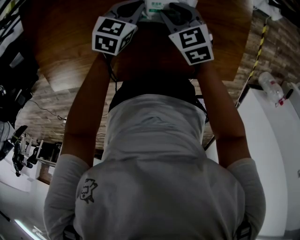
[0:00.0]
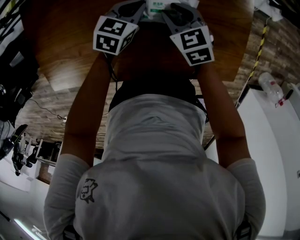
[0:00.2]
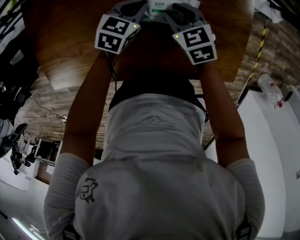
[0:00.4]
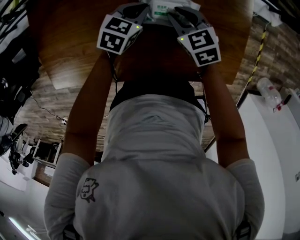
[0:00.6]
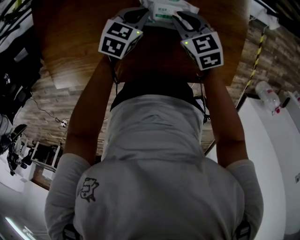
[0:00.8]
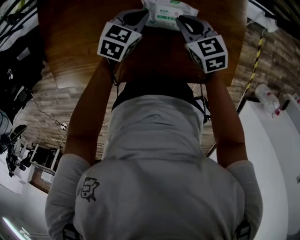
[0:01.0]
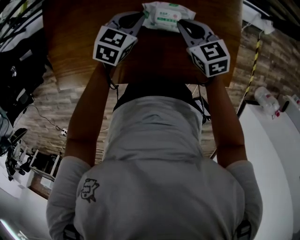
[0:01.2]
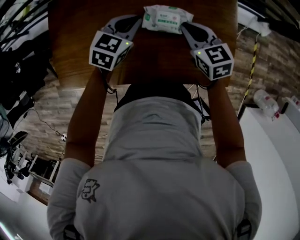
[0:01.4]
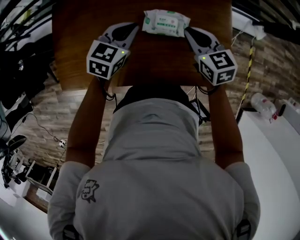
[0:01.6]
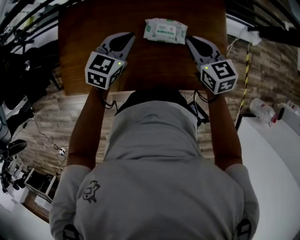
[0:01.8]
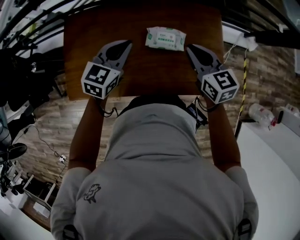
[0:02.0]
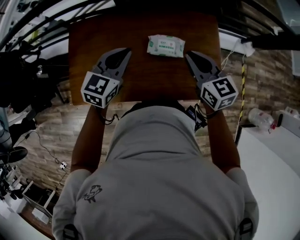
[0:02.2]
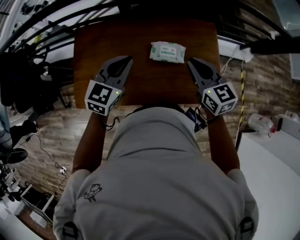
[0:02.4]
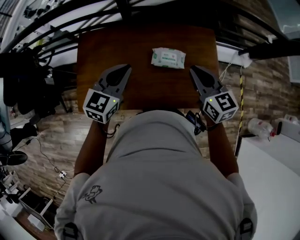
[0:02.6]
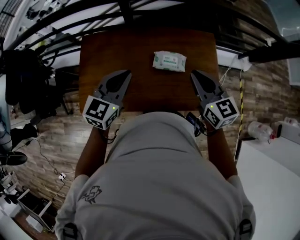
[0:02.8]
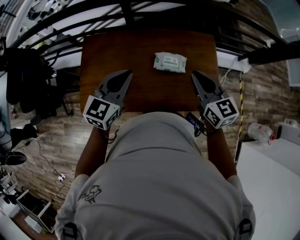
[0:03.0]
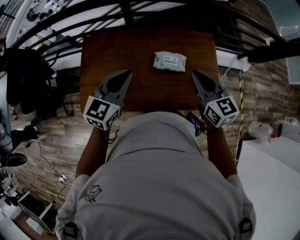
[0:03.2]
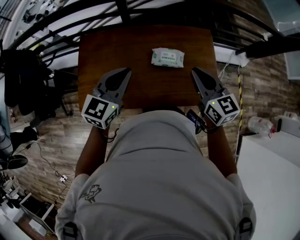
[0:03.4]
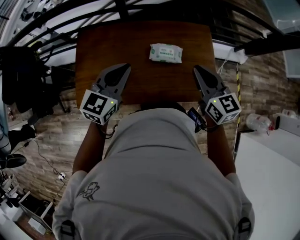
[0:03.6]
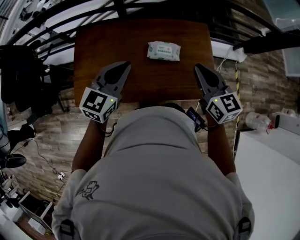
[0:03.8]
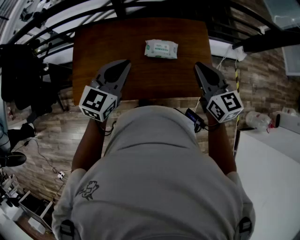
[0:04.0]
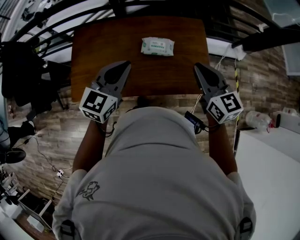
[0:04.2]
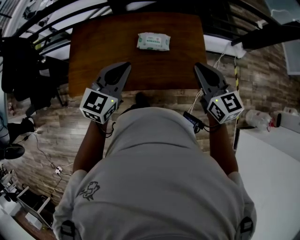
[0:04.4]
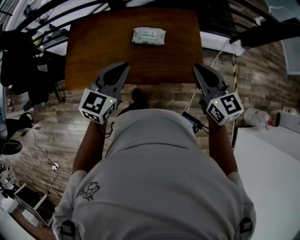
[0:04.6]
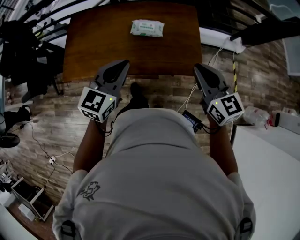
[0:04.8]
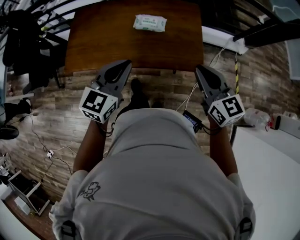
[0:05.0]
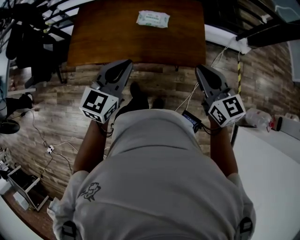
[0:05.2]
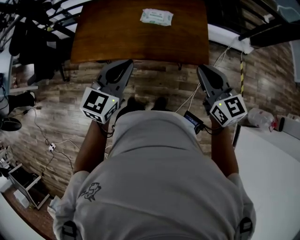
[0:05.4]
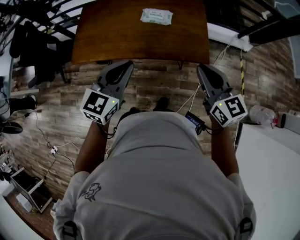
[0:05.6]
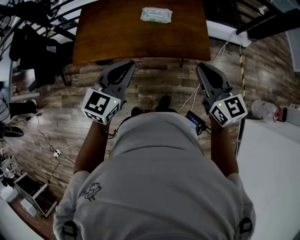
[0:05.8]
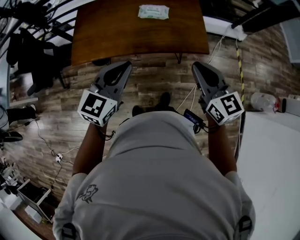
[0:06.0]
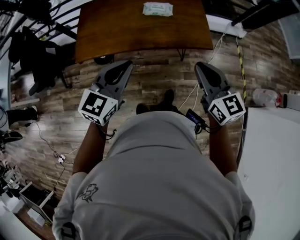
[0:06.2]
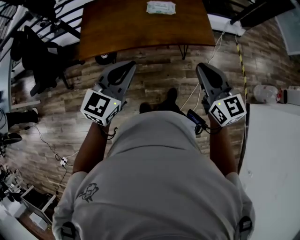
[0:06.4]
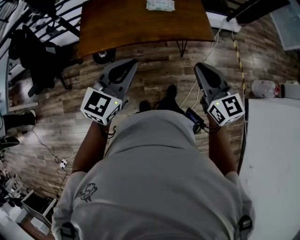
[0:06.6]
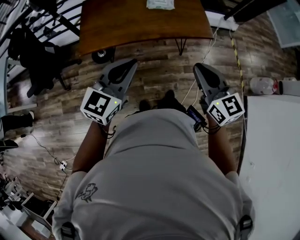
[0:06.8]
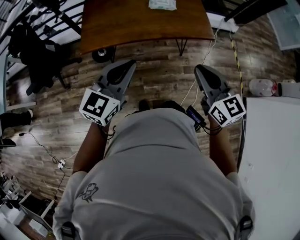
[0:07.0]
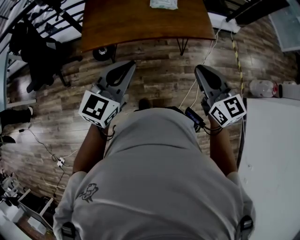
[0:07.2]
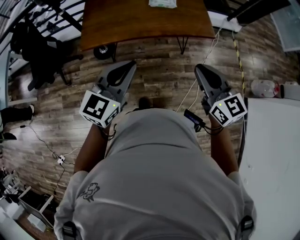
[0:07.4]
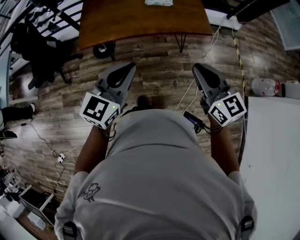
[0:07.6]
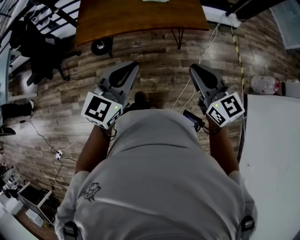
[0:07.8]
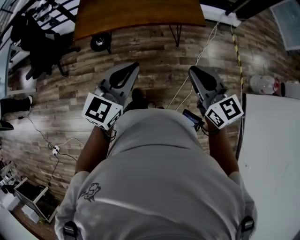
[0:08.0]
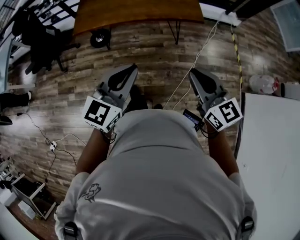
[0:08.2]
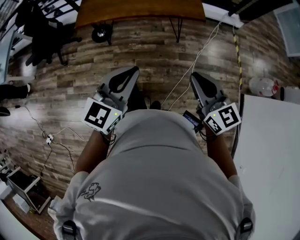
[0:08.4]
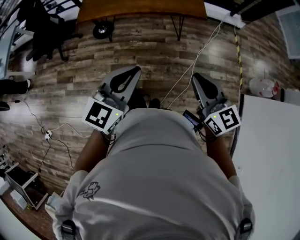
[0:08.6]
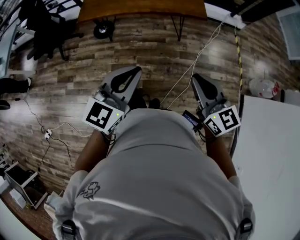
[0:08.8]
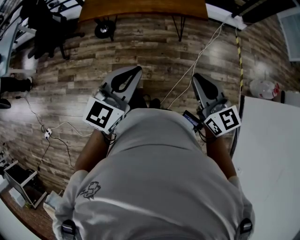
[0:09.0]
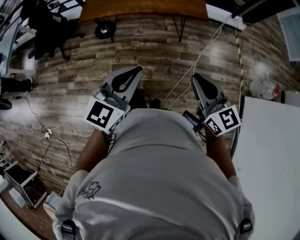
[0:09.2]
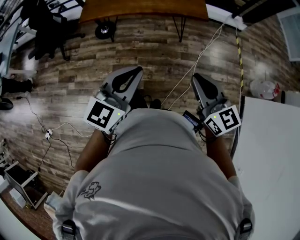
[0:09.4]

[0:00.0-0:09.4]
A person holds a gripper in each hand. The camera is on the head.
0.0 to 1.6 s: Both grippers move upward, some 15 cm. The right gripper closes its fingers.
1.6 to 3.2 s: The grippers both shift upward and backward by about 25 cm.
3.2 to 4.8 s: The two grippers go some 25 cm backward and to the right.
4.8 to 6.2 s: Both grippers travel together backward and to the left, approximately 20 cm.
6.2 to 7.8 s: The grippers both shift backward by roughly 15 cm.
7.8 to 9.4 s: The grippers both shift backward by some 15 cm.

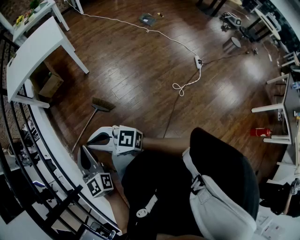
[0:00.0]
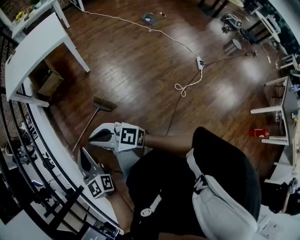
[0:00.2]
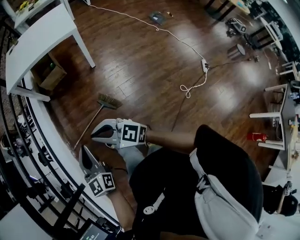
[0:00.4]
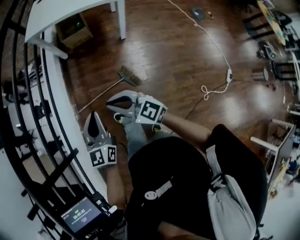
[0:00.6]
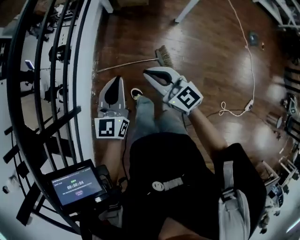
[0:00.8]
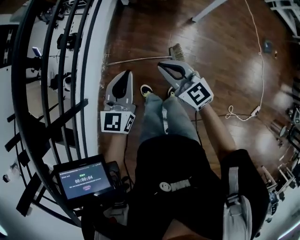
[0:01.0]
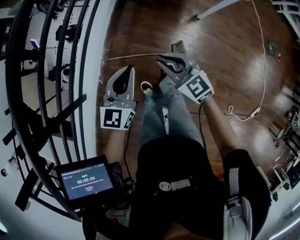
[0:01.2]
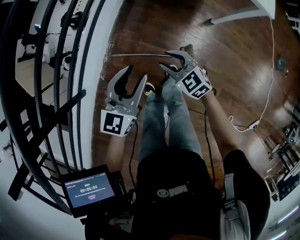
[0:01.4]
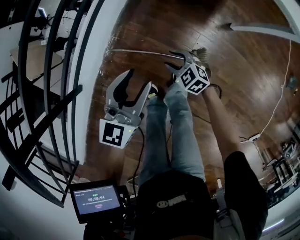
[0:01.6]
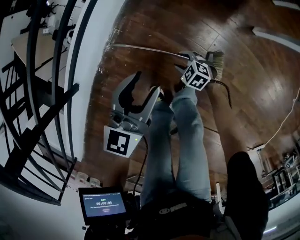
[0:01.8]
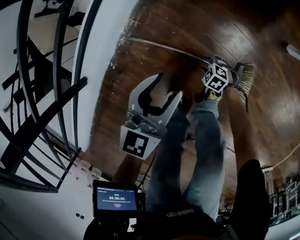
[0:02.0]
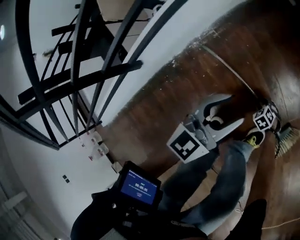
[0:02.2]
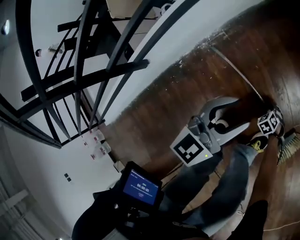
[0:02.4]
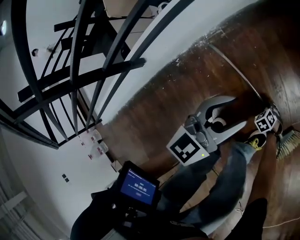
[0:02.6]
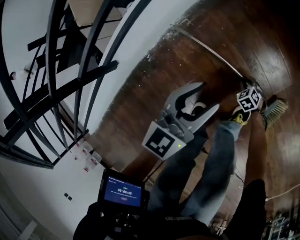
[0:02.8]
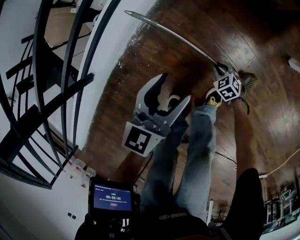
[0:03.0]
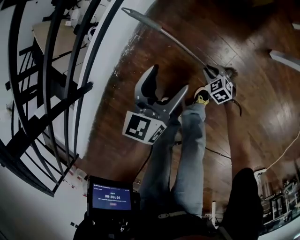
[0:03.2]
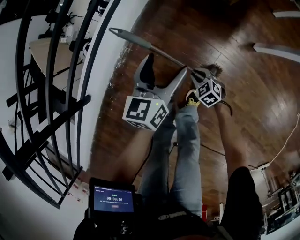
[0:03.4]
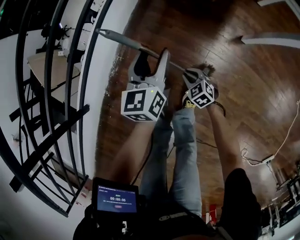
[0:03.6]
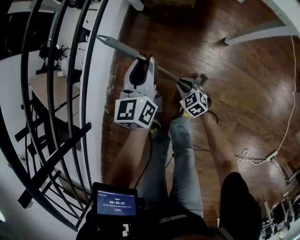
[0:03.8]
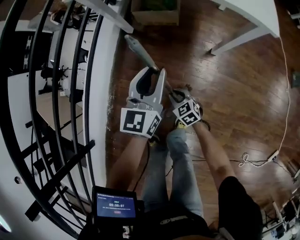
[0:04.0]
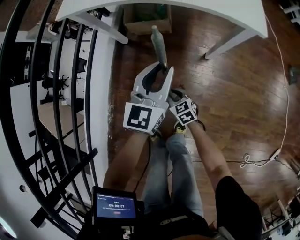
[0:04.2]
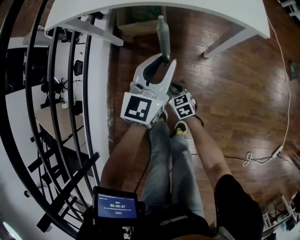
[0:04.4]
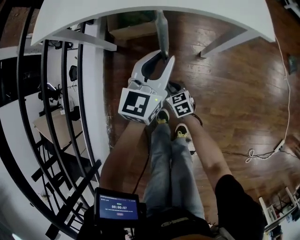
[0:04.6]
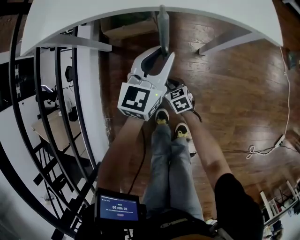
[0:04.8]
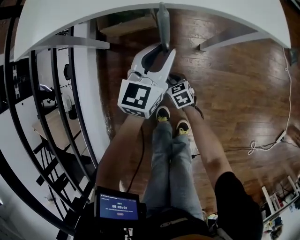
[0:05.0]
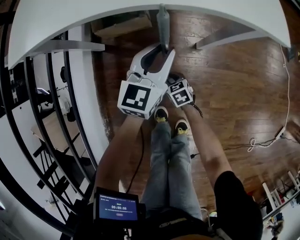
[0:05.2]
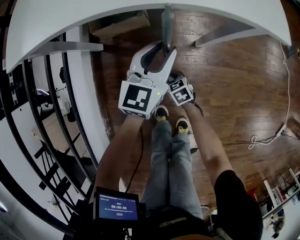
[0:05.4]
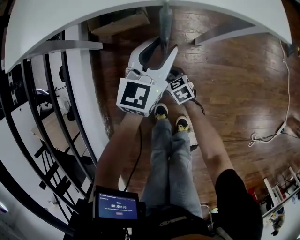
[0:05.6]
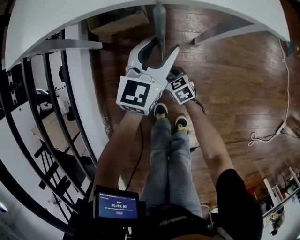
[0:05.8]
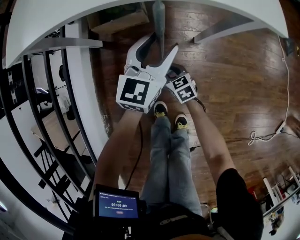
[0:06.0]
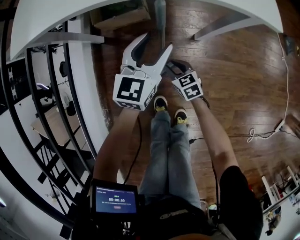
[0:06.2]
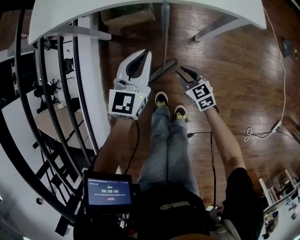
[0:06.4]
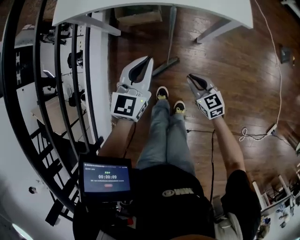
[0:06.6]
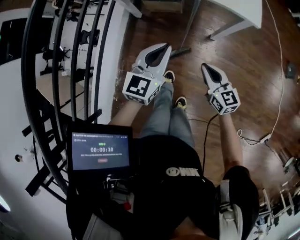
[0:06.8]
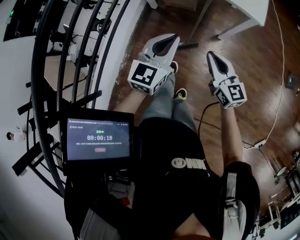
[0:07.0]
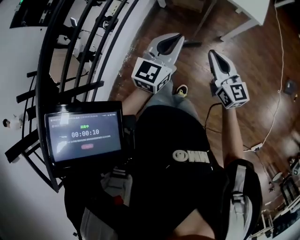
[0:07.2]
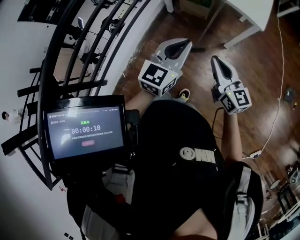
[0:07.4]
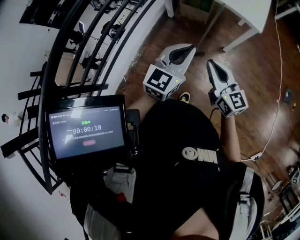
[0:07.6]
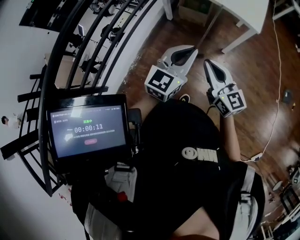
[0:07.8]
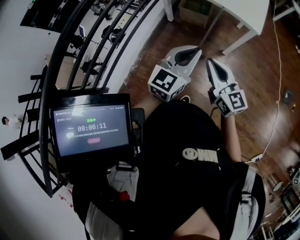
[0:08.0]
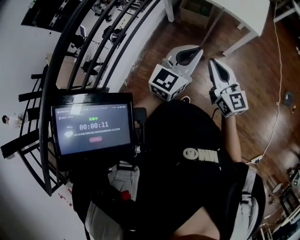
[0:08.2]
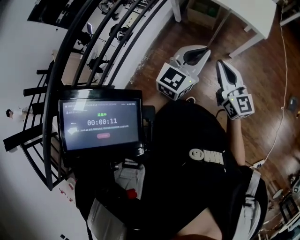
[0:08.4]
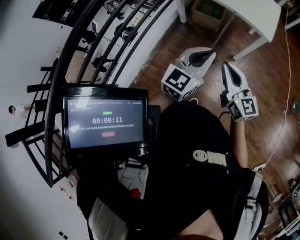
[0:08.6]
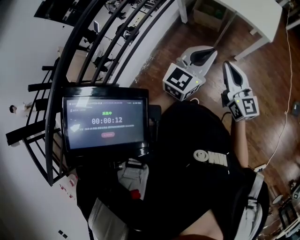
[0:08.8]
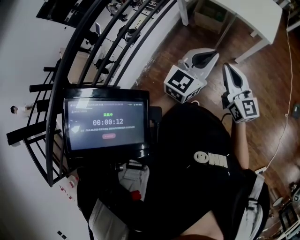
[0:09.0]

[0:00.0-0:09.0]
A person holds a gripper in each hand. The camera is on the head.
0.0 to 1.6 s: The pair of grippers is taken forward, about 40 cm. The left gripper travels downward by roughly 20 cm, and opens up; the right gripper shifts some 40 cm downward, angles its fingers downward, by some 50 degrees, and opens up.
1.6 to 3.0 s: Both grippers move downward, roughly 30 cm. The right gripper closes up.
3.0 to 4.4 s: The right gripper heads upward, covering approximately 25 cm, and rotates around the line of its fingers by roughly 40 degrees, clockwise from behind; the left gripper changes place by some 50 cm, rotates approximately 40 degrees, and closes up.
4.4 to 6.0 s: The right gripper is displaced forward and downward by some 10 cm, while the left gripper travels downward and forward by roughly 10 cm, and opens up.
6.0 to 7.6 s: The left gripper moves backward and upward, some 60 cm, rotates roughly 20 degrees, and closes up, while the right gripper is displaced upward and backward by roughly 70 cm, tips its fingers upward by some 40 degrees, and closes.
7.6 to 9.0 s: There are only small adjustments of the grippers.

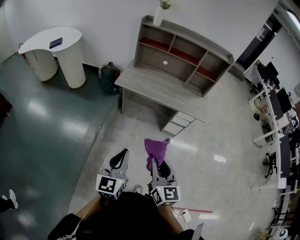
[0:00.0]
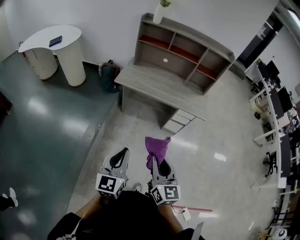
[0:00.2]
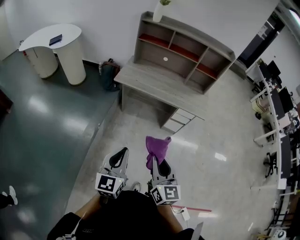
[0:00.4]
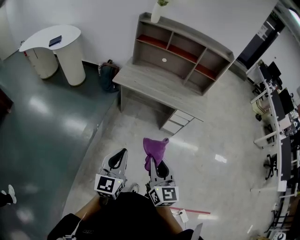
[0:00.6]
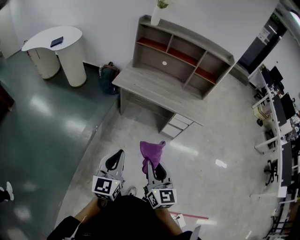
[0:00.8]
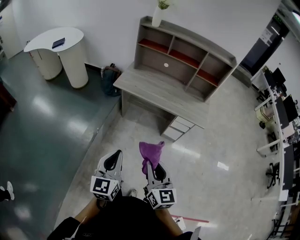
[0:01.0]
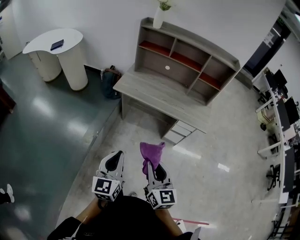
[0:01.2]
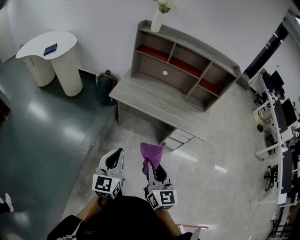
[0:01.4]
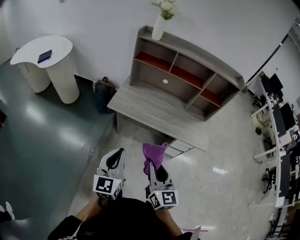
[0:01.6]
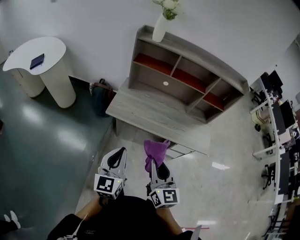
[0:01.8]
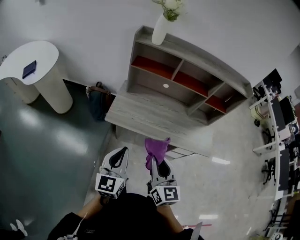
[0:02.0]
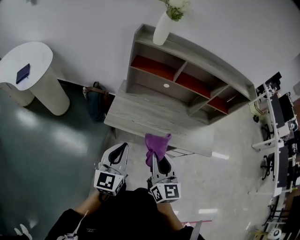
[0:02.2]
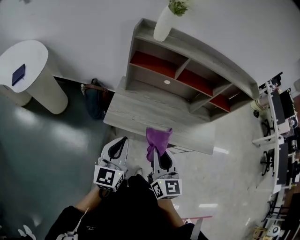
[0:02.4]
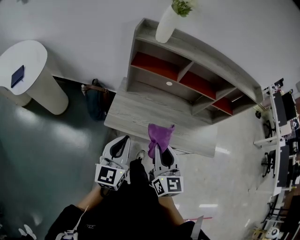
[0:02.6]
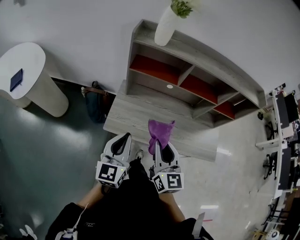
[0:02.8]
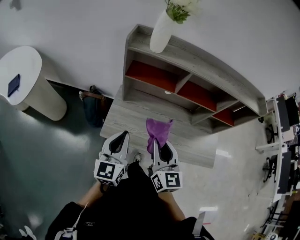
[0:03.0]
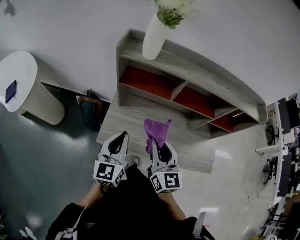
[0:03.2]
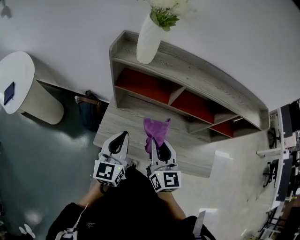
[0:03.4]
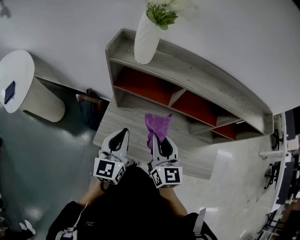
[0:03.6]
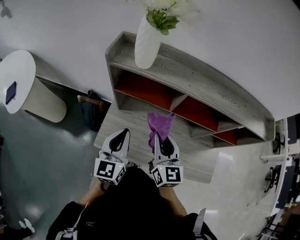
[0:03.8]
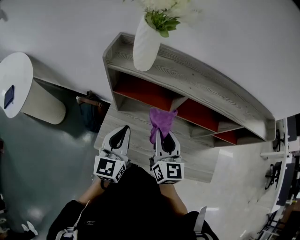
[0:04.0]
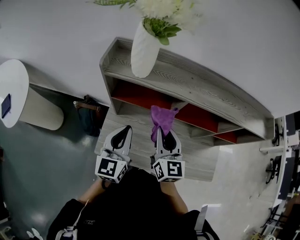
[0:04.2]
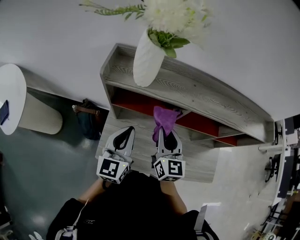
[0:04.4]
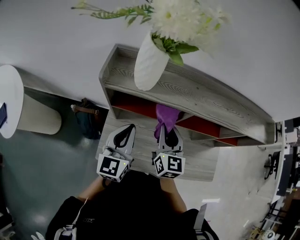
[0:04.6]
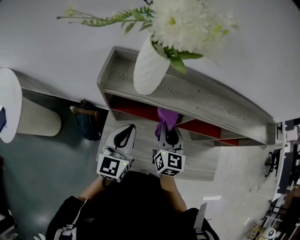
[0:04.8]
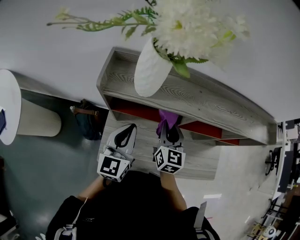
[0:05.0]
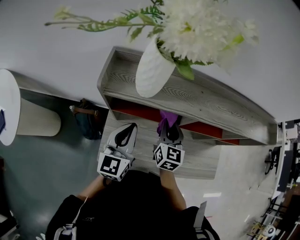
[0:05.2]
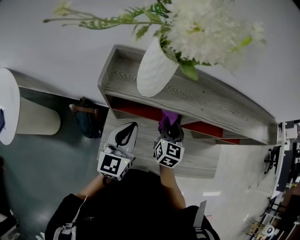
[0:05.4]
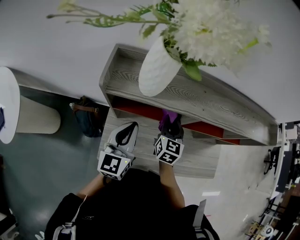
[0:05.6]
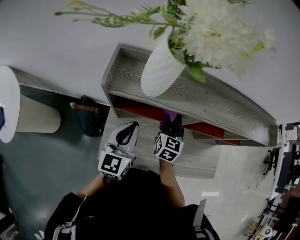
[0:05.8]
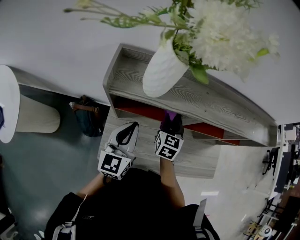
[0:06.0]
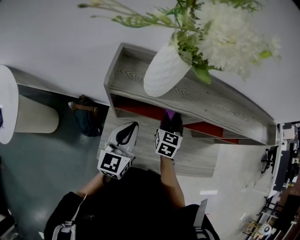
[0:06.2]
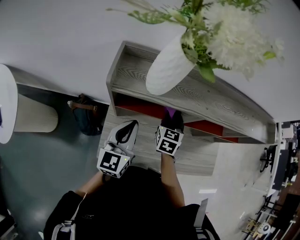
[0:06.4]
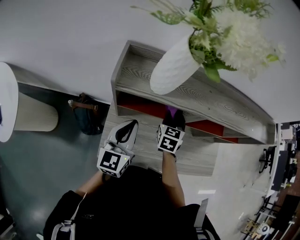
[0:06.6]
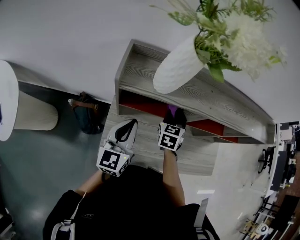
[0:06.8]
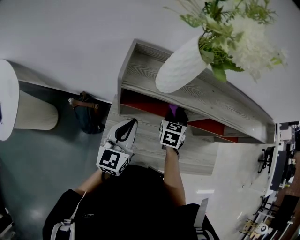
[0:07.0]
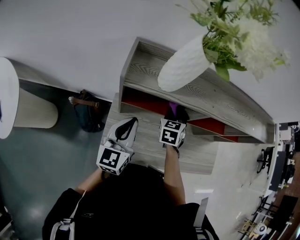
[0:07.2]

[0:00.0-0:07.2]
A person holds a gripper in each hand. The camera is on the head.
0.0 to 1.4 s: Both grippers travel together forward, approximately 15 cm.
1.4 to 2.8 s: Both grippers are carried forward, approximately 50 cm.
2.8 to 4.4 s: The grippers both shift forward by approximately 30 cm.
4.4 to 5.8 s: The left gripper moves forward, about 5 cm. The right gripper travels forward and downward by roughly 15 cm, and changes its angle by approximately 20 degrees.
5.8 to 7.2 s: The right gripper changes its angle by some 20 degrees.
